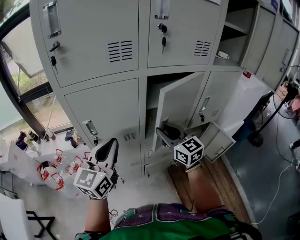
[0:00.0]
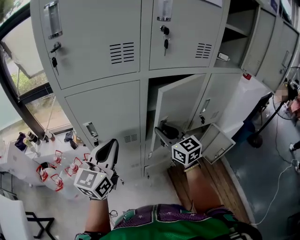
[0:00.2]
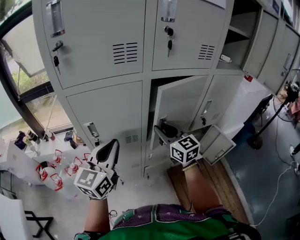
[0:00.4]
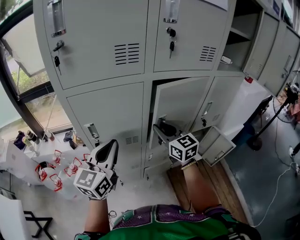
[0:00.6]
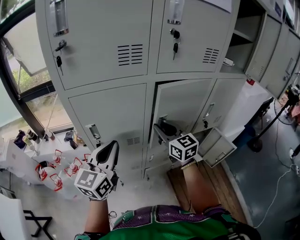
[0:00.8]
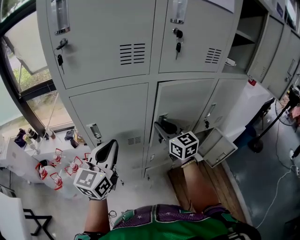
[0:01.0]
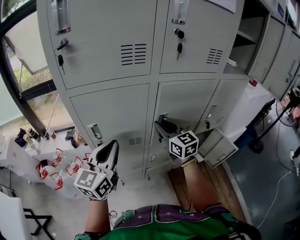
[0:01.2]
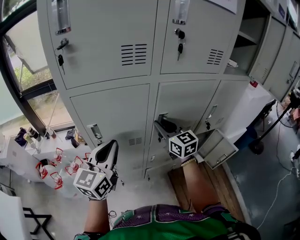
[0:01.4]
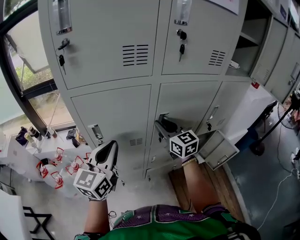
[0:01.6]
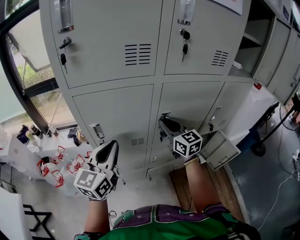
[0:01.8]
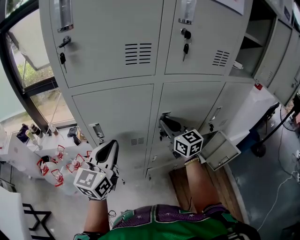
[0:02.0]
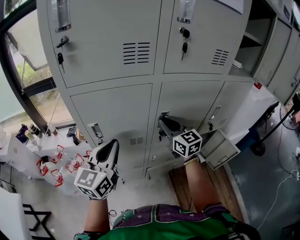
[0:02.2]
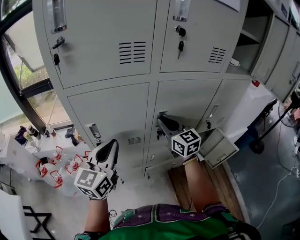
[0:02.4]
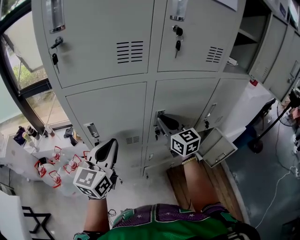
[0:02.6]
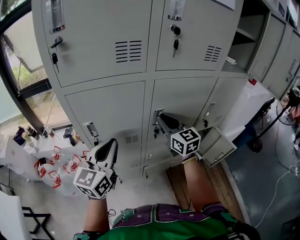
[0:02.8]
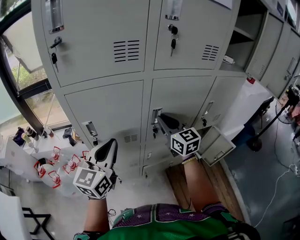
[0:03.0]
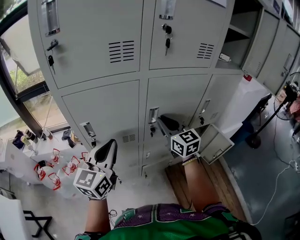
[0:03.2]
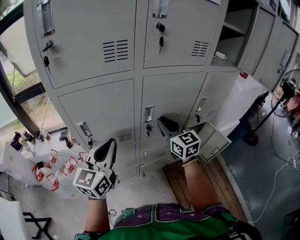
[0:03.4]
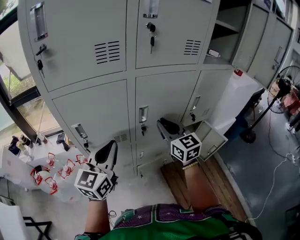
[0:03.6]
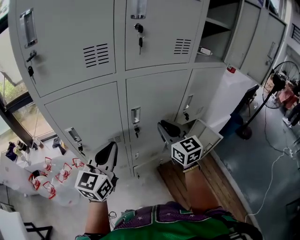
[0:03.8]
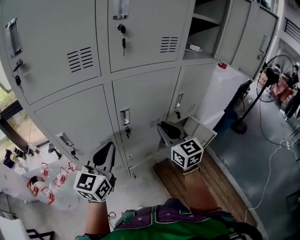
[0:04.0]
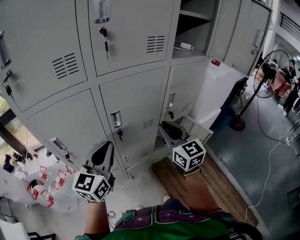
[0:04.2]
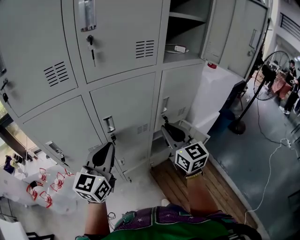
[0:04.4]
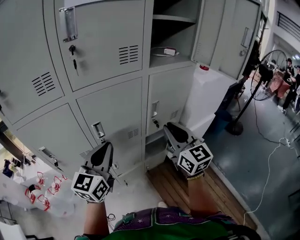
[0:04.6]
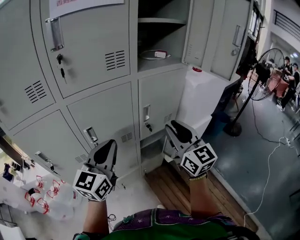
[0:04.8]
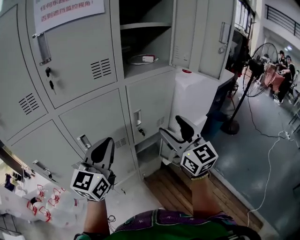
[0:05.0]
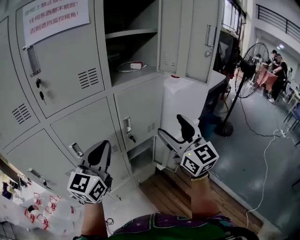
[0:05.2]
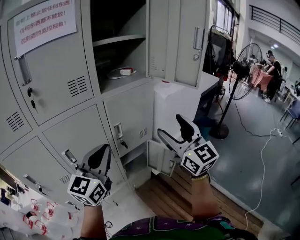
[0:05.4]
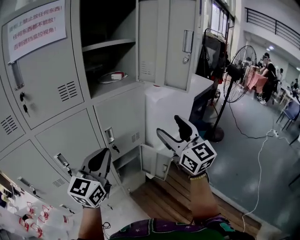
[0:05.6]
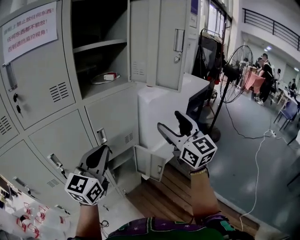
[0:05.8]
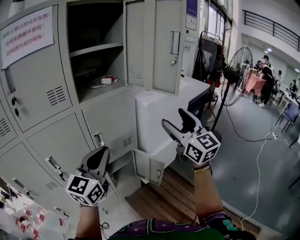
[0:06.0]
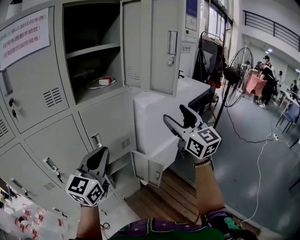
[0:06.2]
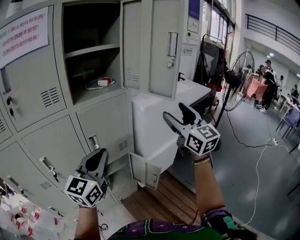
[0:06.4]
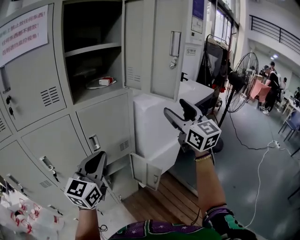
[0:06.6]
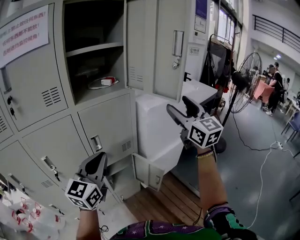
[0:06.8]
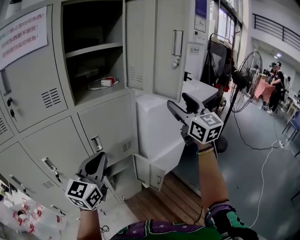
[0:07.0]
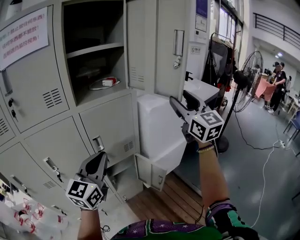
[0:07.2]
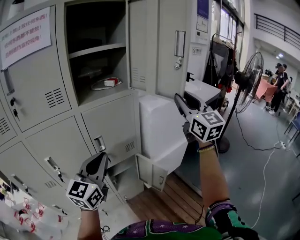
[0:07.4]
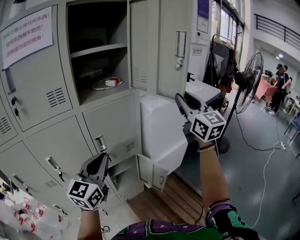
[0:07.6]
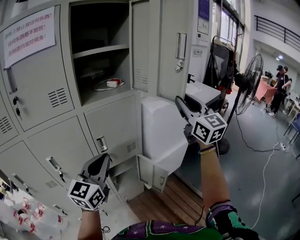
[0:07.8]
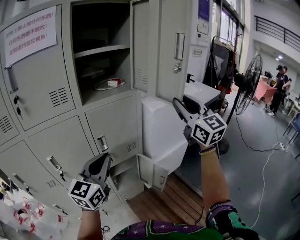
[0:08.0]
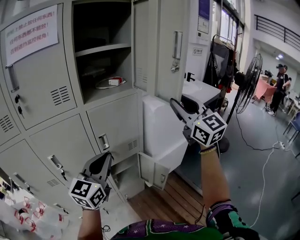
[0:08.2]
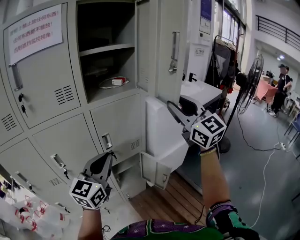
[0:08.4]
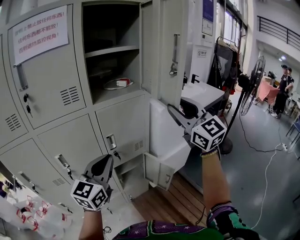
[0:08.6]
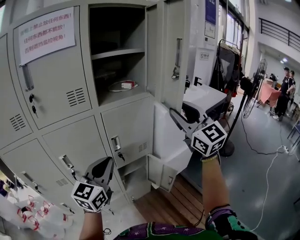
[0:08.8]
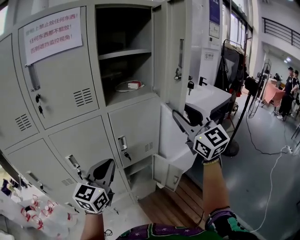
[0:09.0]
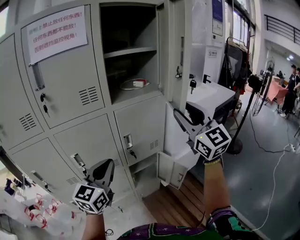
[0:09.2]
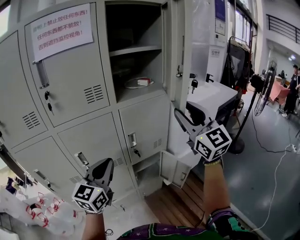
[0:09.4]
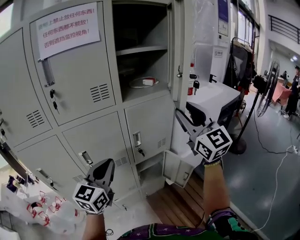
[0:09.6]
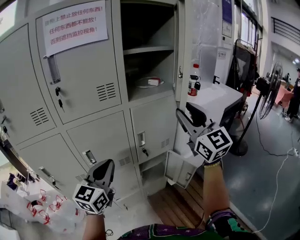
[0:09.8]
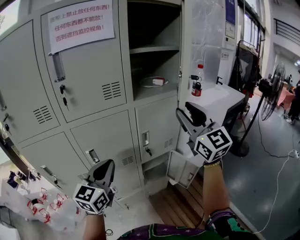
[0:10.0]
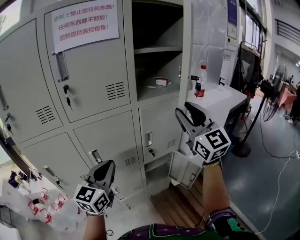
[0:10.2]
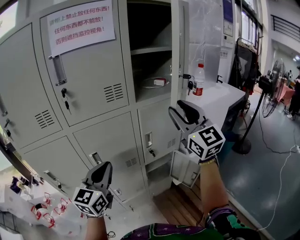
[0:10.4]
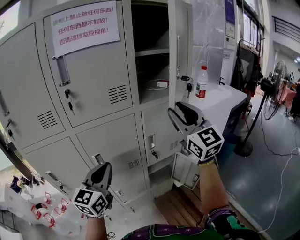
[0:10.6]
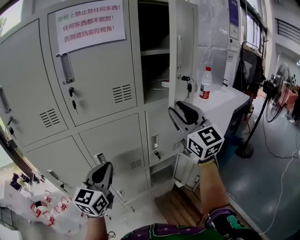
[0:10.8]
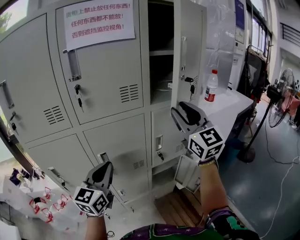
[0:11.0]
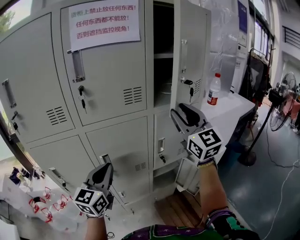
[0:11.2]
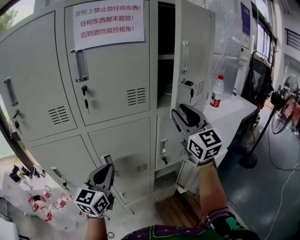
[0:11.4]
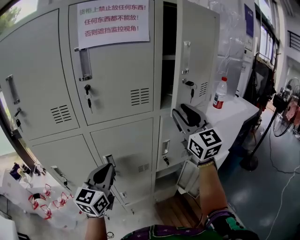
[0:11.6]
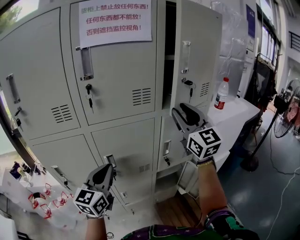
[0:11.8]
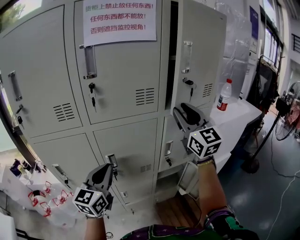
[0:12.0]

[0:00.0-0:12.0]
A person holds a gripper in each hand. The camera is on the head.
0:00.0 to 0:01.6: The right gripper shifts roughly 10 cm forward.
0:01.6 to 0:03.0: The grippers move only a little.
0:03.0 to 0:04.4: The left gripper heads to the right, covering roughly 15 cm; the right gripper shifts roughly 20 cm to the right and backward.
0:04.4 to 0:06.0: The right gripper heads to the right and upward, covering about 40 cm, and opens its fingers. Meanwhile the left gripper heads to the right, covering roughly 30 cm.
0:06.0 to 0:07.6: The right gripper moves forward and upward, about 10 cm, and closes up.
0:07.6 to 0:09.0: The left gripper moves to the left, approximately 10 cm; the right gripper moves to the left and backward, approximately 15 cm.
0:09.0 to 0:10.4: The two grippers go about 15 cm to the left.
0:10.4 to 0:12.0: The left gripper heads to the left, covering approximately 5 cm. Meanwhile the right gripper shifts roughly 10 cm forward and to the left.

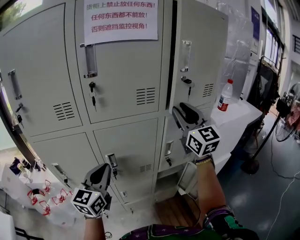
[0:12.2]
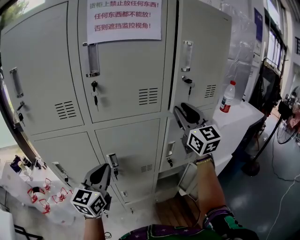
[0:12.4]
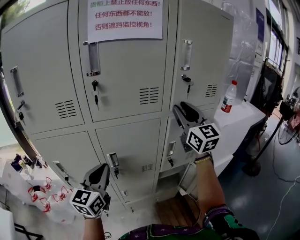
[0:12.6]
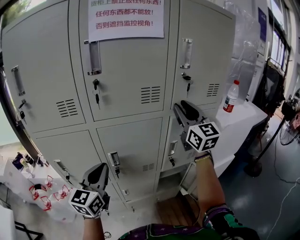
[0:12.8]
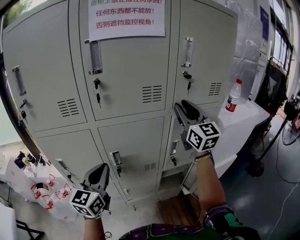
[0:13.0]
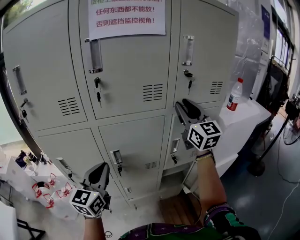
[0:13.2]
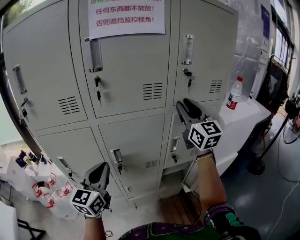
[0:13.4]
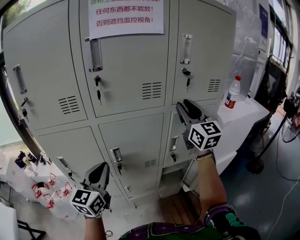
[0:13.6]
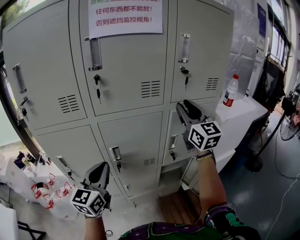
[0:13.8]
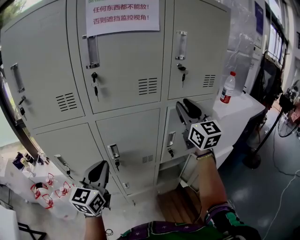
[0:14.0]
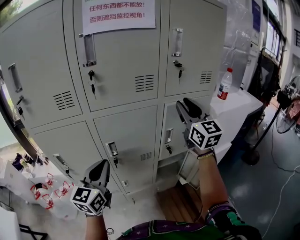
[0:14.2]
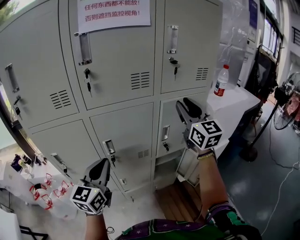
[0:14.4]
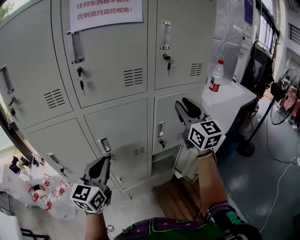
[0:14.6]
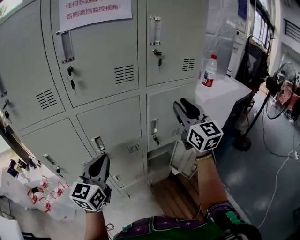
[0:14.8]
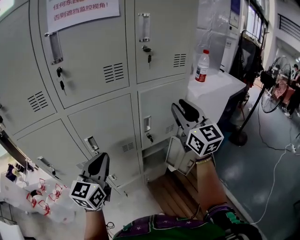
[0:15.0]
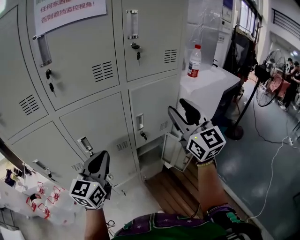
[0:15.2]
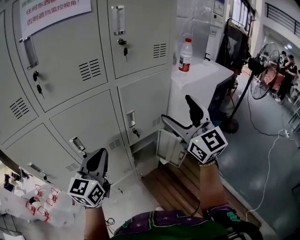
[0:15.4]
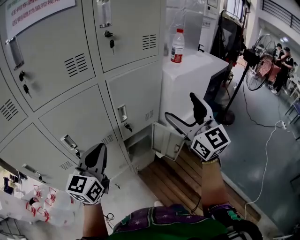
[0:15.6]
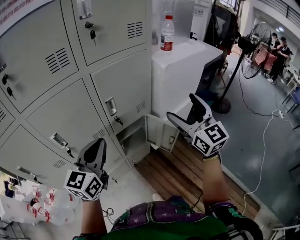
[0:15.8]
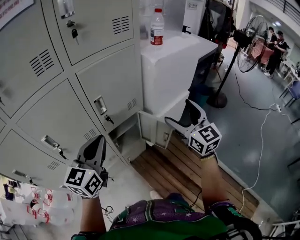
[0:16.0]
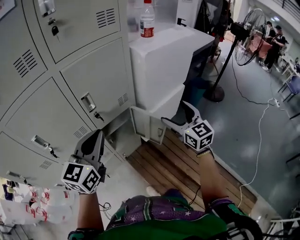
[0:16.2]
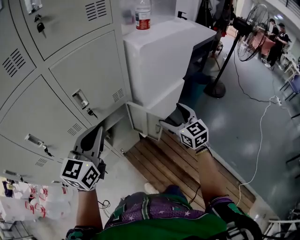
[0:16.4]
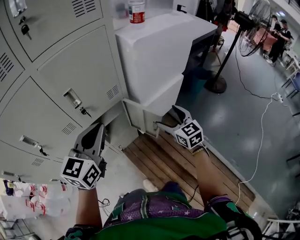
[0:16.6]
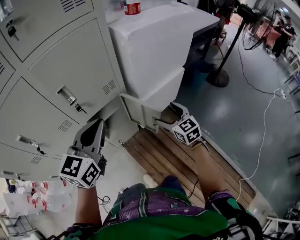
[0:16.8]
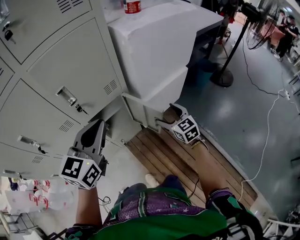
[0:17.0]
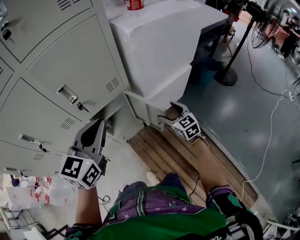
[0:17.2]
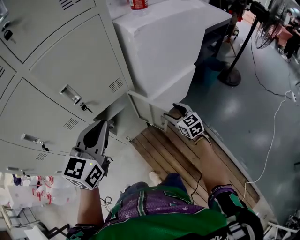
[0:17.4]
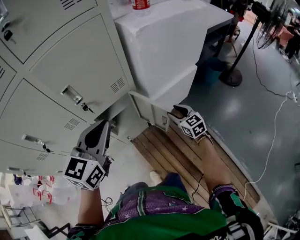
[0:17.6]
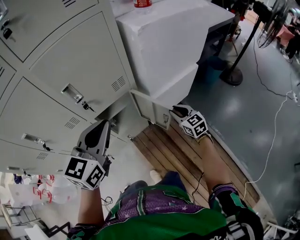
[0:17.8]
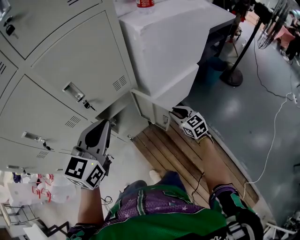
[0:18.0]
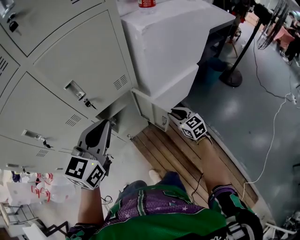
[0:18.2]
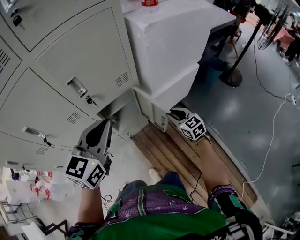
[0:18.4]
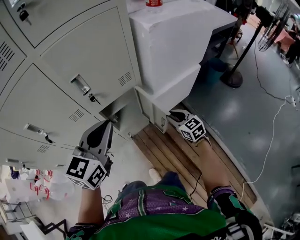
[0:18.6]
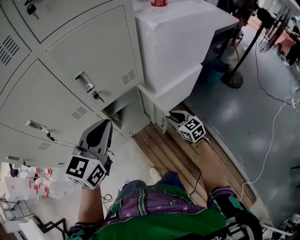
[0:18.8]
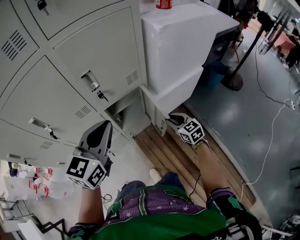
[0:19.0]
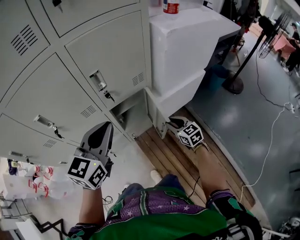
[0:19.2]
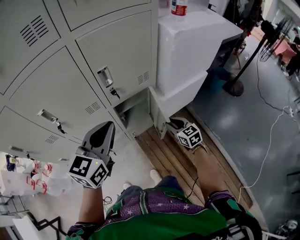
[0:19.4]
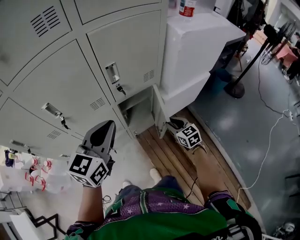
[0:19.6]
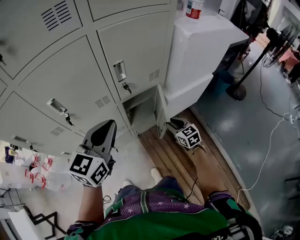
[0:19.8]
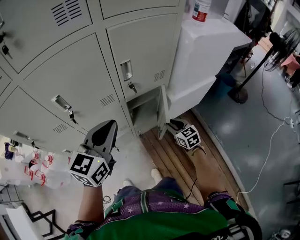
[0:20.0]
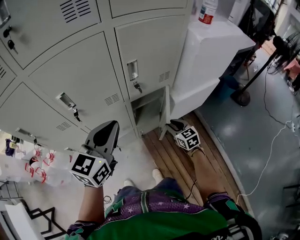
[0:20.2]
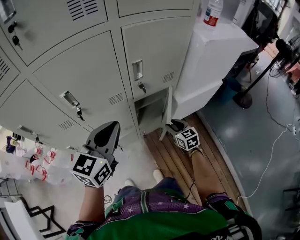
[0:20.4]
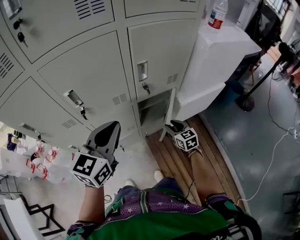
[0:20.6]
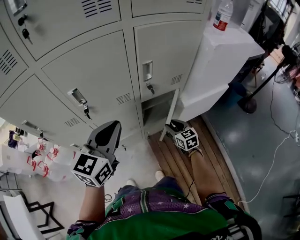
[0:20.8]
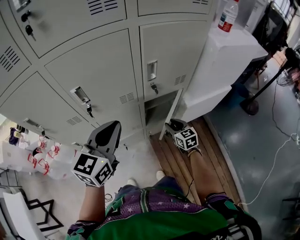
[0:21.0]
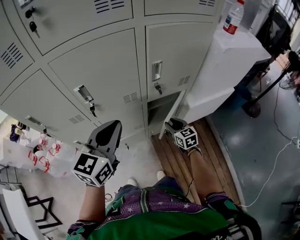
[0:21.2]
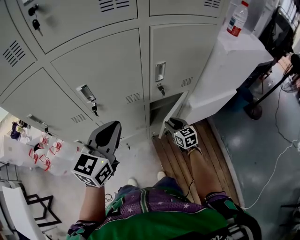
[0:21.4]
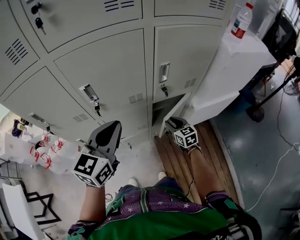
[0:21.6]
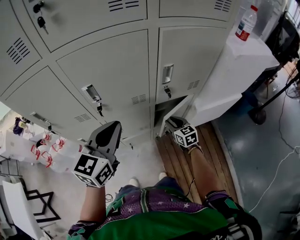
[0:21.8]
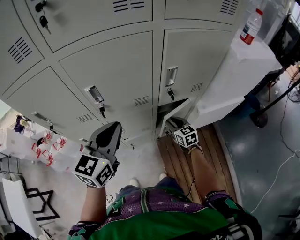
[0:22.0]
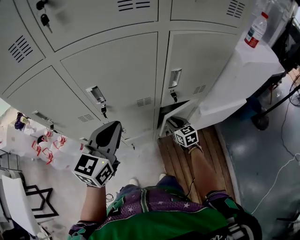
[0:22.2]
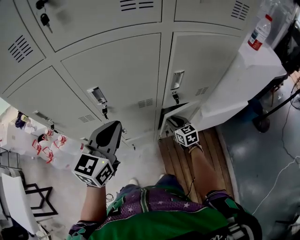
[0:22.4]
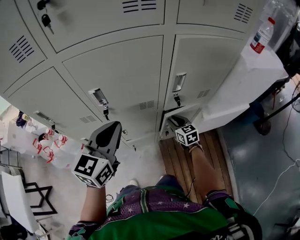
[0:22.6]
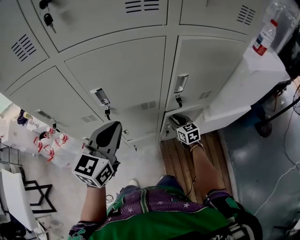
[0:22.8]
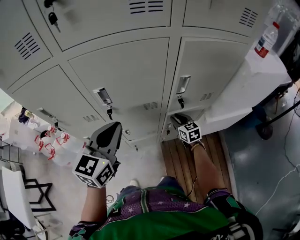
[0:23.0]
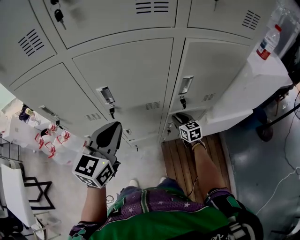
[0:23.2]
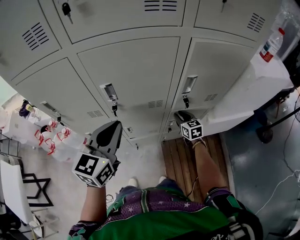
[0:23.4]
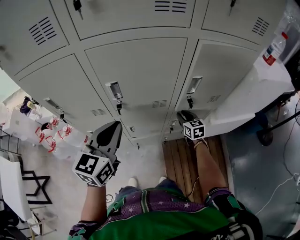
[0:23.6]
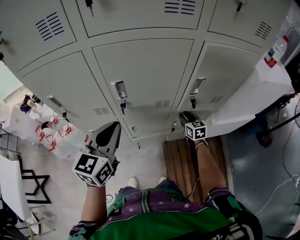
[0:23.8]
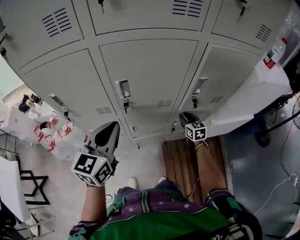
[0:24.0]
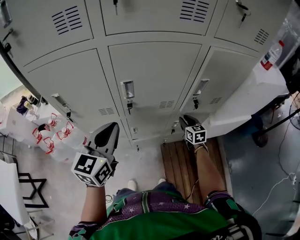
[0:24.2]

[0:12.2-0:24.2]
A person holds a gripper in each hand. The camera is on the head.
0:12.2 to 0:13.8: The grippers make only small movements.
0:13.8 to 0:15.2: The left gripper heads to the right, covering roughly 10 cm. Meanwhile the right gripper goes about 15 cm backward and to the right.
0:15.2 to 0:16.6: The right gripper is displaced downward and to the right by about 40 cm, points its fingers approximately 30 degrees further downward, and opens up. Meanwhile the left gripper travels to the right by approximately 25 cm.
0:16.6 to 0:18.2: The right gripper goes roughly 10 cm downward, and closes up.
0:18.2 to 0:19.8: Both grippers move to the left, some 15 cm.
0:19.8 to 0:21.2: Both grippers travel together to the left, some 10 cm.
0:21.2 to 0:22.6: The right gripper moves forward and to the left, some 10 cm; the left gripper ends up some 5 cm from where it was.
0:22.6 to 0:24.2: The left gripper travels to the left by roughly 10 cm.
